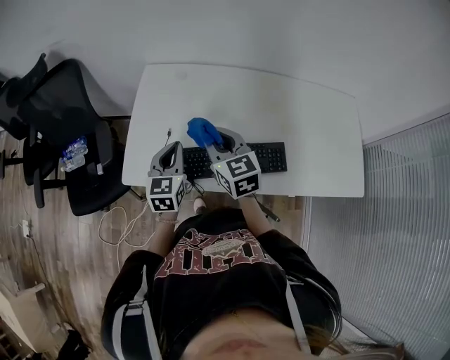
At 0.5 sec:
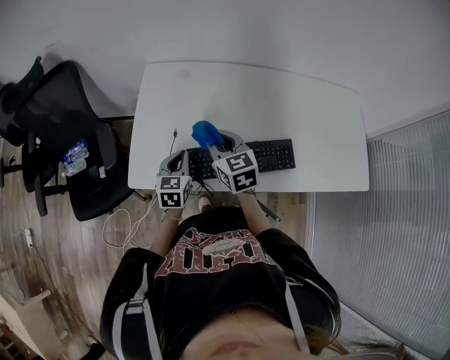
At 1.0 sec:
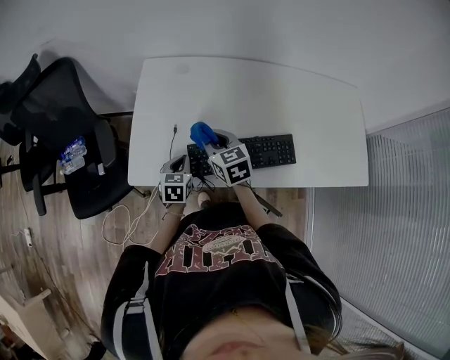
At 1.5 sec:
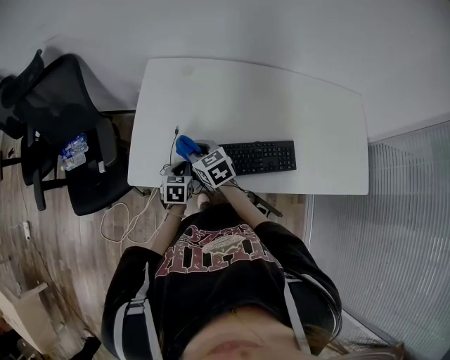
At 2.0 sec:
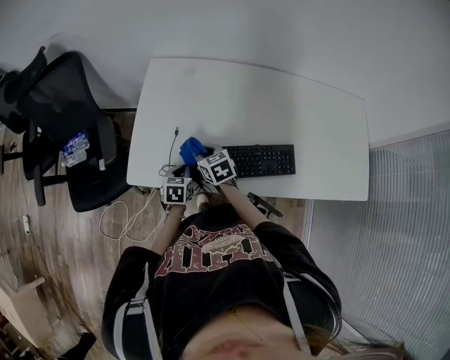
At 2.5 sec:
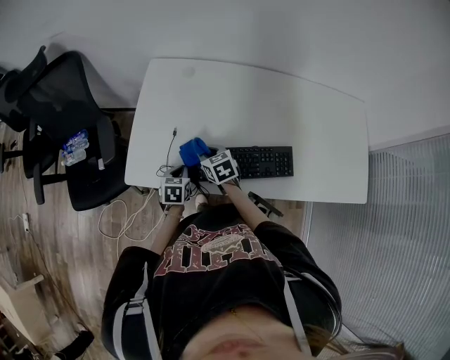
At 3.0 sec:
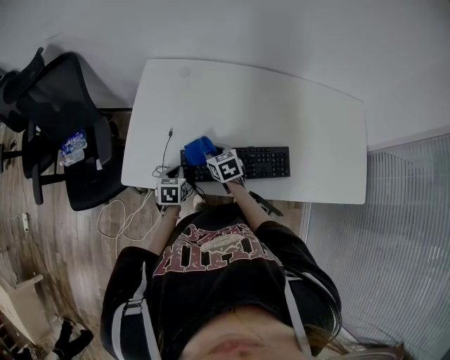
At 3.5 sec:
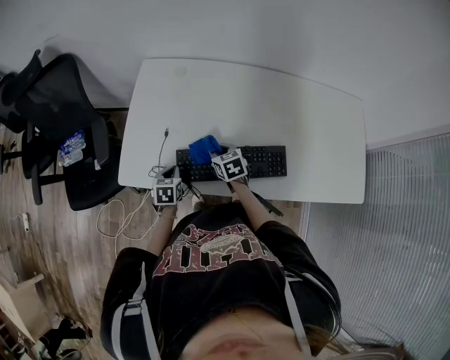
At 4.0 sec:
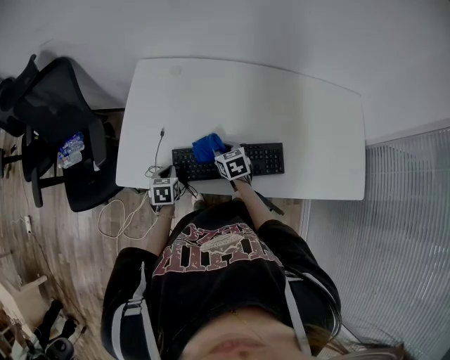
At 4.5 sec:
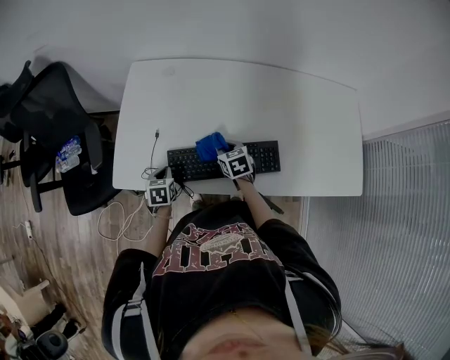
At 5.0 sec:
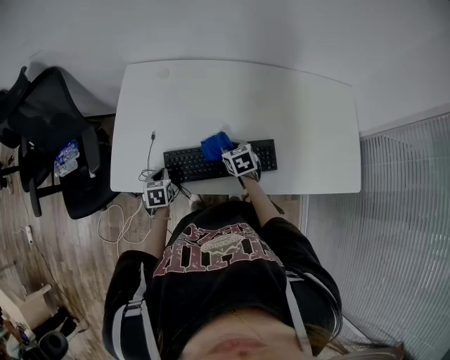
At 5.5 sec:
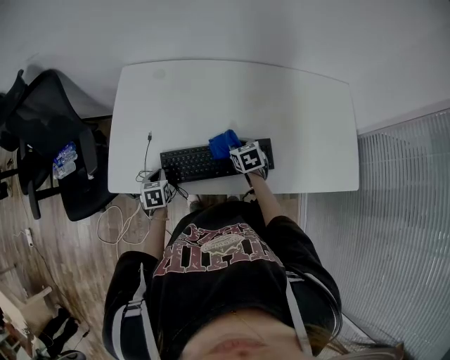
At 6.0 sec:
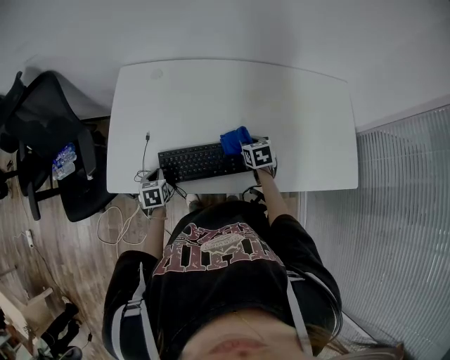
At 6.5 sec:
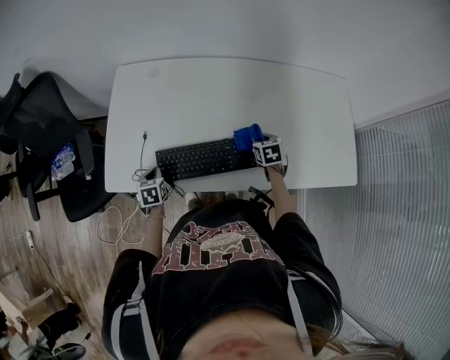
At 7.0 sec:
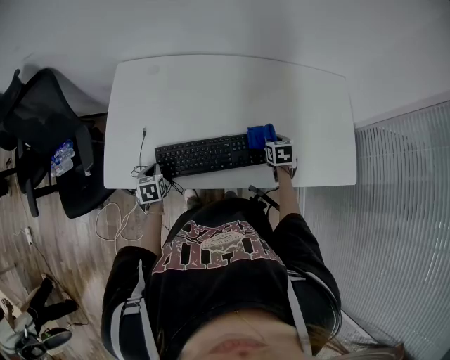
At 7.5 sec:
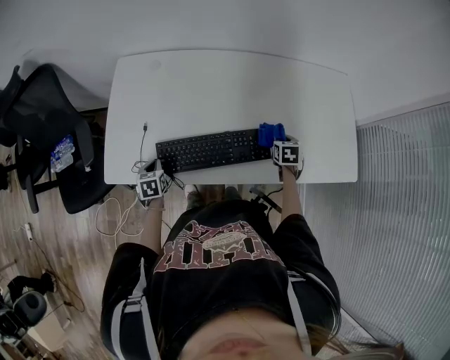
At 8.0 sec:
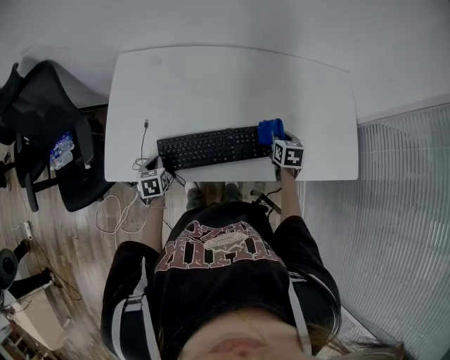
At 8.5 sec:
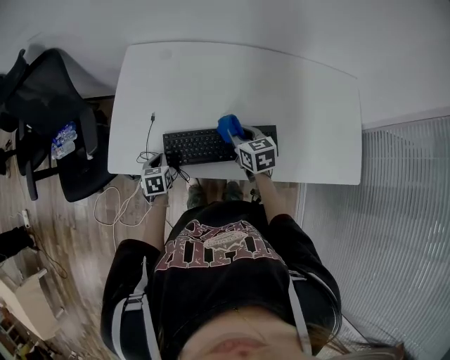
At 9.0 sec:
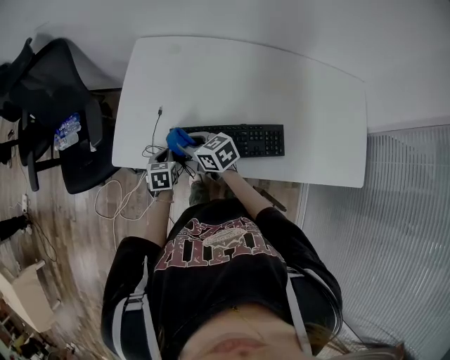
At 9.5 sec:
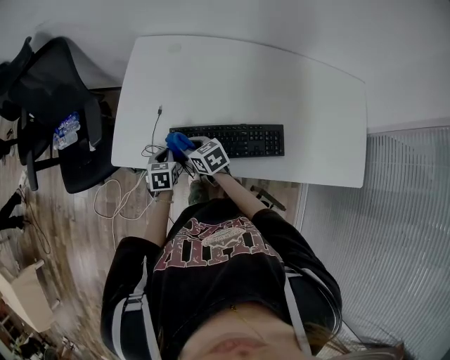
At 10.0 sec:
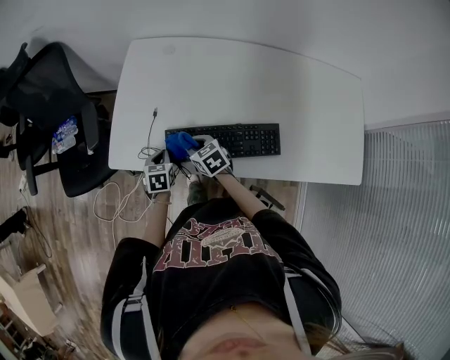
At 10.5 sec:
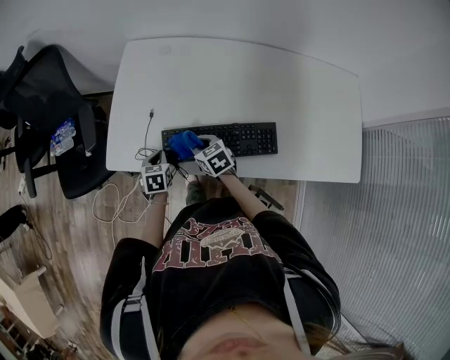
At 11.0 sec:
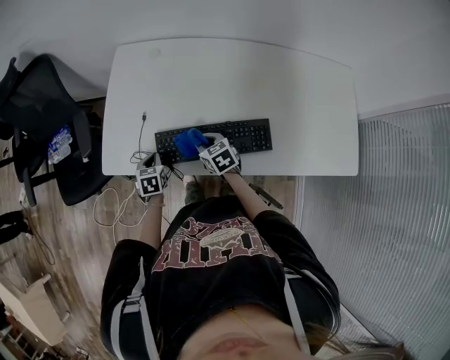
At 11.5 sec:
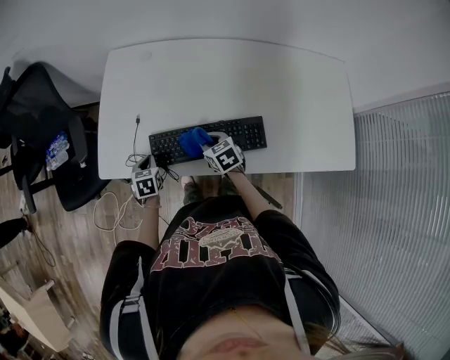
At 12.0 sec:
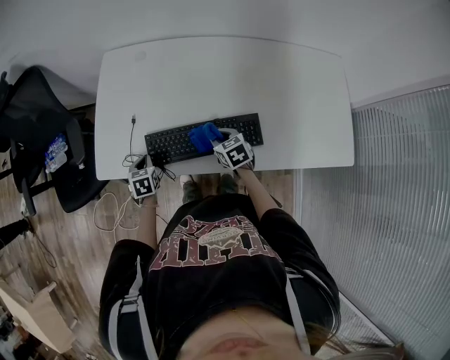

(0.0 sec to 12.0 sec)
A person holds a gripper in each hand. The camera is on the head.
0.0 sec - 2.0 sec: Both grippers travel together downward, approximately 20 cm. The right gripper turns by some 20 degrees, while the left gripper turns by roughly 30 degrees.
2.0 sec - 4.0 sec: The right gripper shifts roughly 15 cm to the right.
4.0 sec - 6.0 sec: The right gripper goes roughly 15 cm to the right.
6.0 sec - 8.0 sec: The right gripper moves to the right, approximately 10 cm.
8.0 sec - 10.0 sec: The right gripper shifts by about 35 cm, and turns by approximately 50 degrees.
10.0 sec - 12.0 sec: The right gripper shifts roughly 15 cm to the right.

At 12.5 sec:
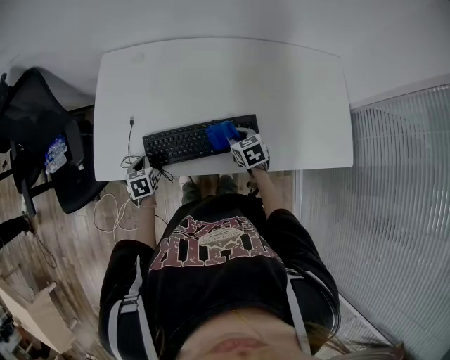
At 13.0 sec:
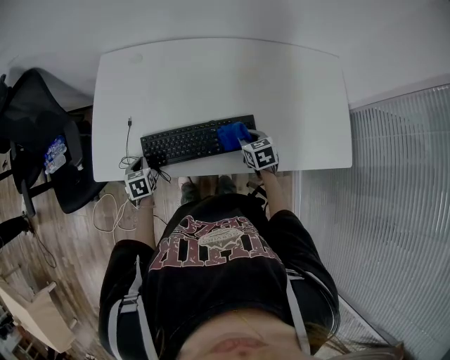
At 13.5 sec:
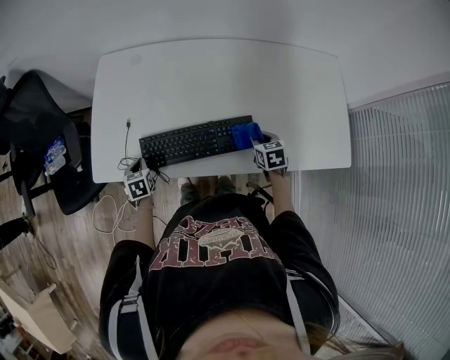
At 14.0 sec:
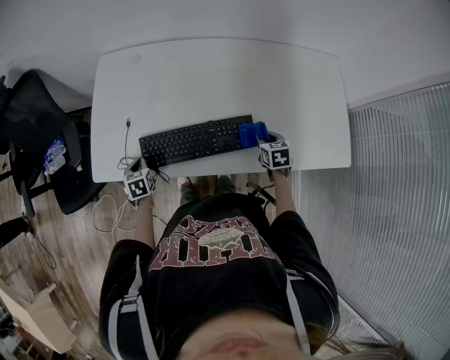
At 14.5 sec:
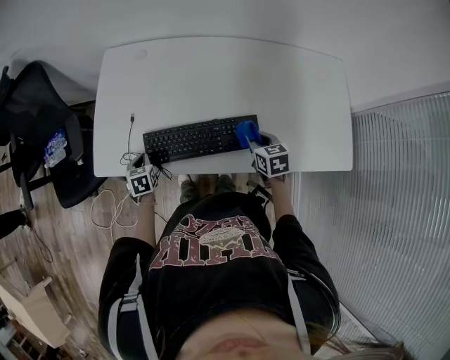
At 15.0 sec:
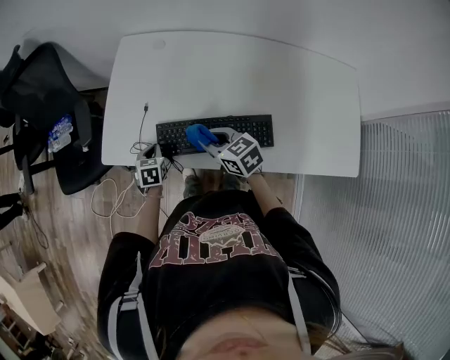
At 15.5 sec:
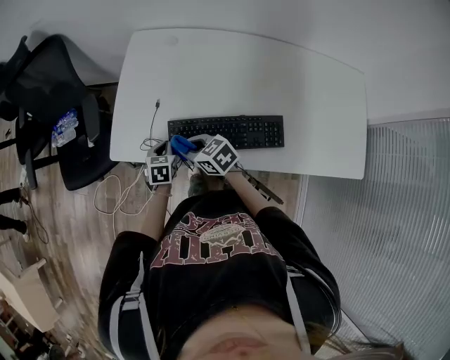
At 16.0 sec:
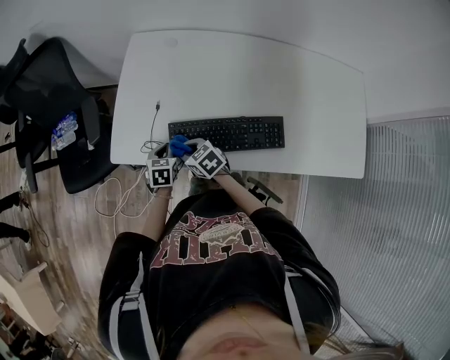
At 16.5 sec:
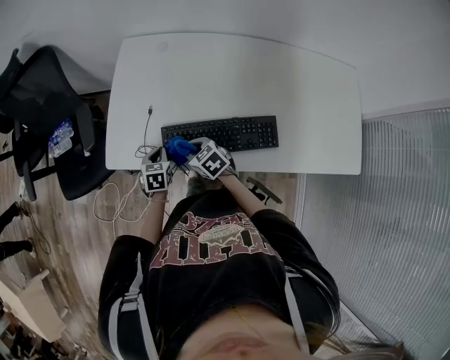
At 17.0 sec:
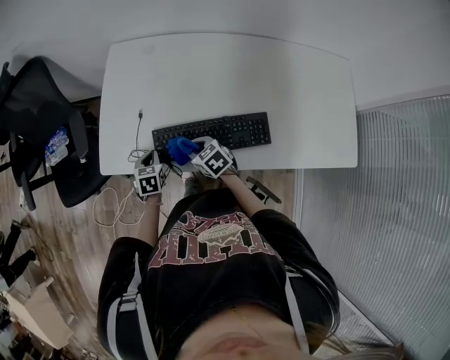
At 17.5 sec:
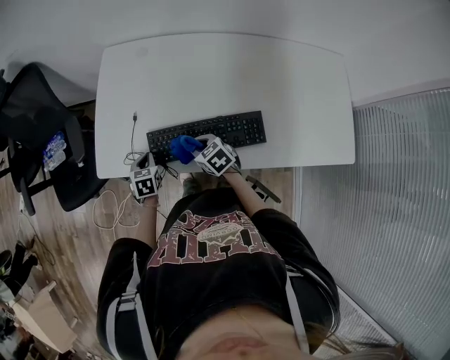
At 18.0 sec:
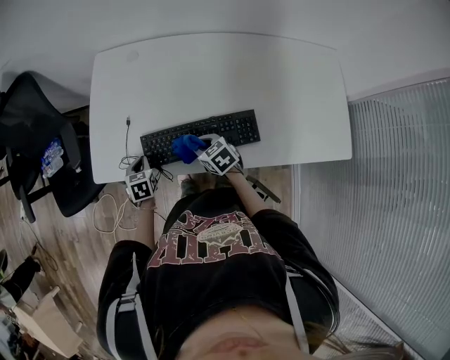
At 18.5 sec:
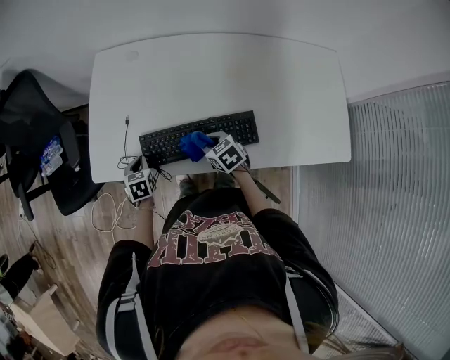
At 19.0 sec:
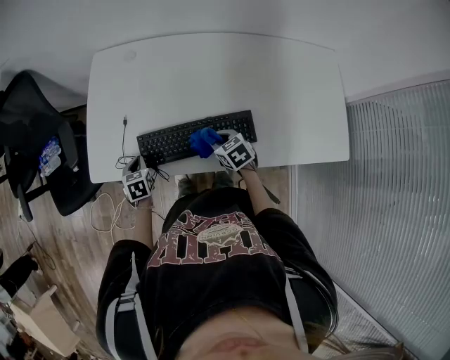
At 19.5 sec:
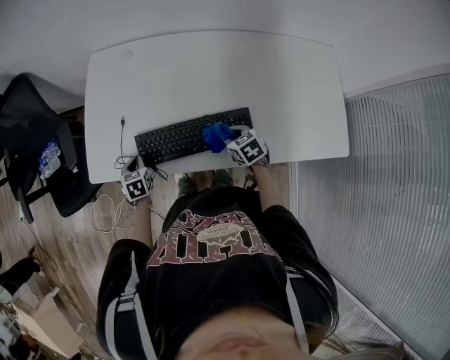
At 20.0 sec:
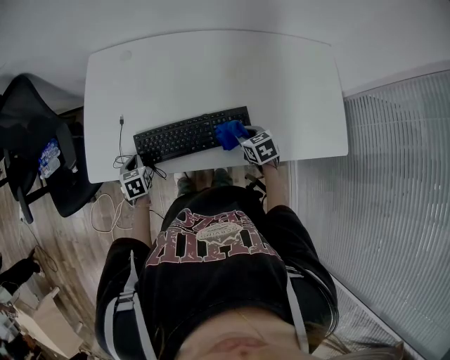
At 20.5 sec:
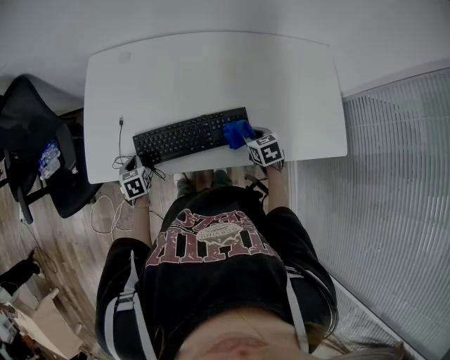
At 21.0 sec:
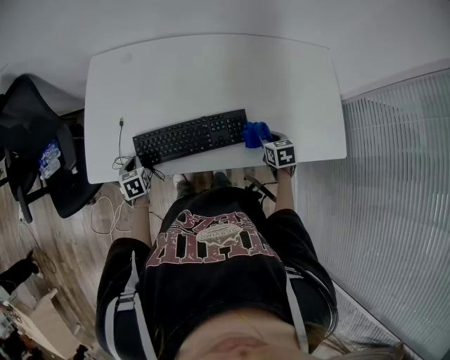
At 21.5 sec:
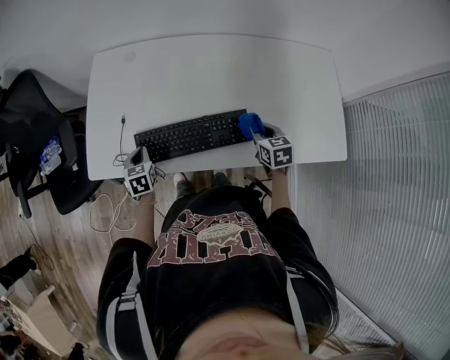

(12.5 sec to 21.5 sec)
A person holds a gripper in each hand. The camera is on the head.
12.5 sec - 14.5 sec: The right gripper is displaced to the right and upward by roughly 10 cm.
14.5 sec - 17.0 sec: The right gripper moves to the left, about 25 cm, and turns by roughly 30 degrees.
17.0 sec - 19.5 sec: The right gripper shifts roughly 20 cm to the right.
19.5 sec - 21.5 sec: The left gripper moves roughly 5 cm. The right gripper goes roughly 15 cm to the right and upward, and turns by roughly 20 degrees.

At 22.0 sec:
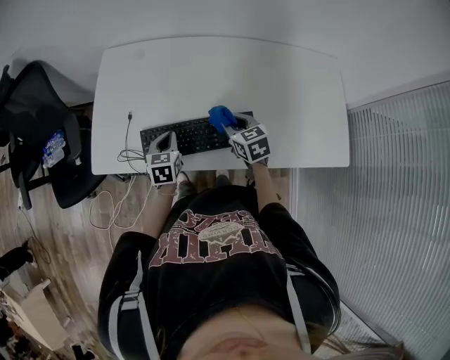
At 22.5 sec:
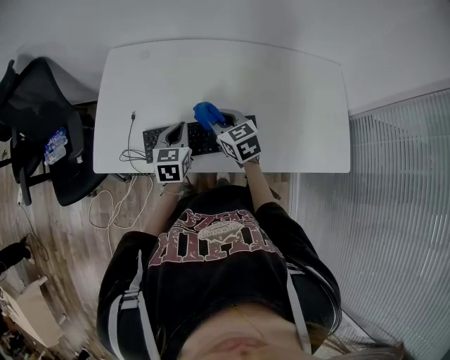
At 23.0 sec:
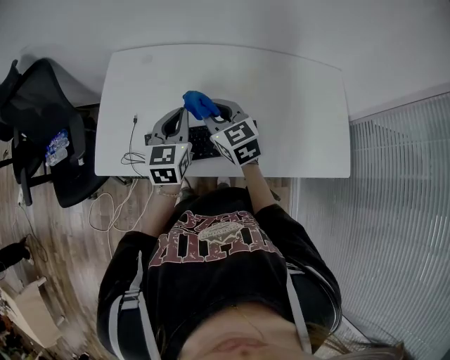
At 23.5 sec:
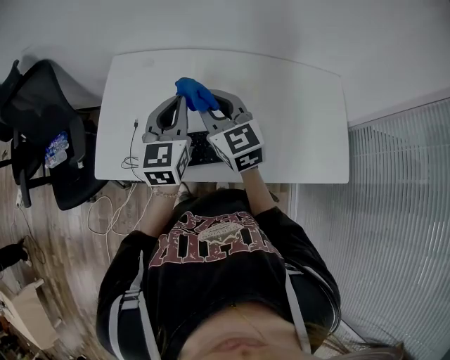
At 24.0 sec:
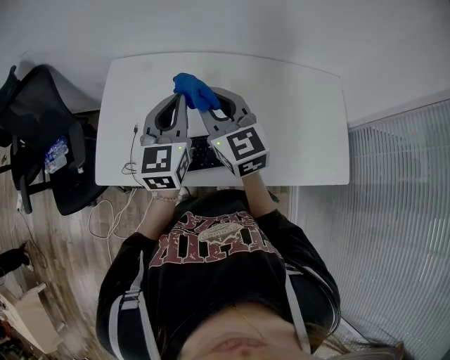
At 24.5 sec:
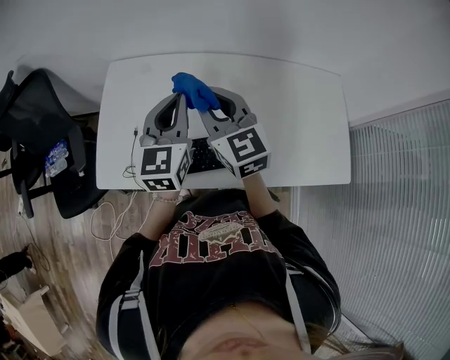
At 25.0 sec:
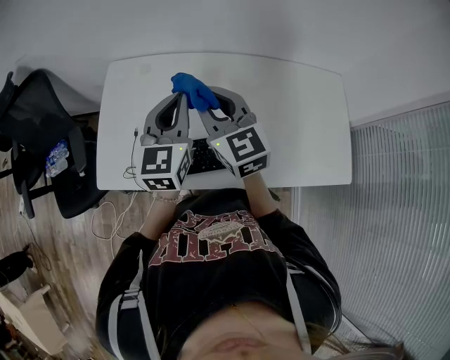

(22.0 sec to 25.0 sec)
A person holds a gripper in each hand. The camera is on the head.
22.0 sec - 23.5 sec: The right gripper shifts about 20 cm upward and to the left, and changes its angle by some 30 degrees; the left gripper goes roughly 25 cm upward, and changes its angle by about 30 degrees.
23.5 sec - 25.0 sec: The grippers move only a little.

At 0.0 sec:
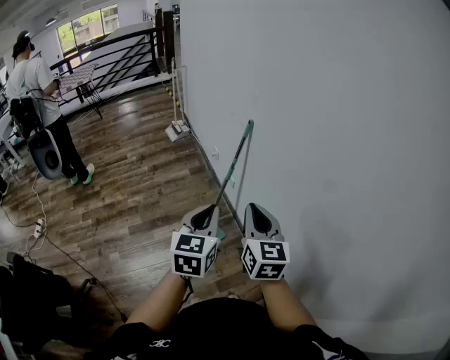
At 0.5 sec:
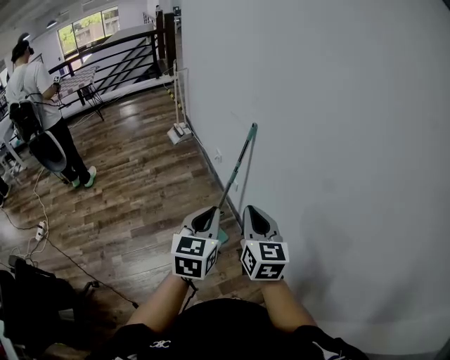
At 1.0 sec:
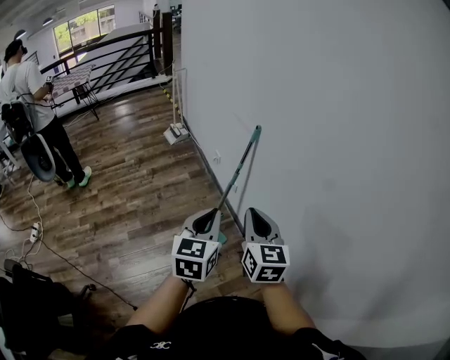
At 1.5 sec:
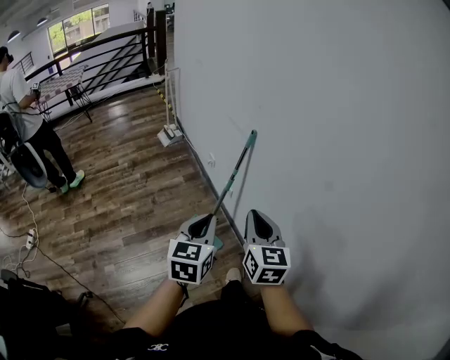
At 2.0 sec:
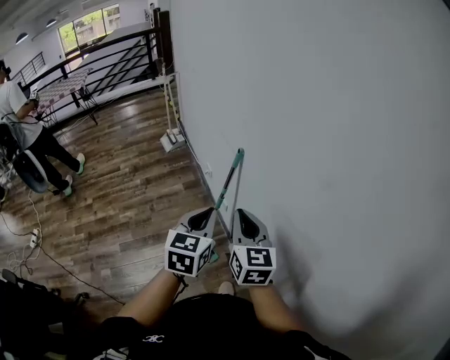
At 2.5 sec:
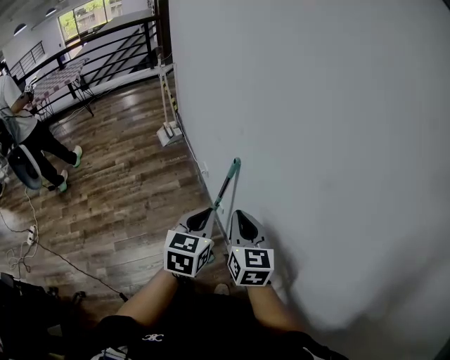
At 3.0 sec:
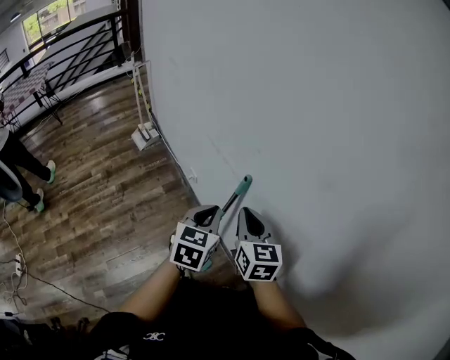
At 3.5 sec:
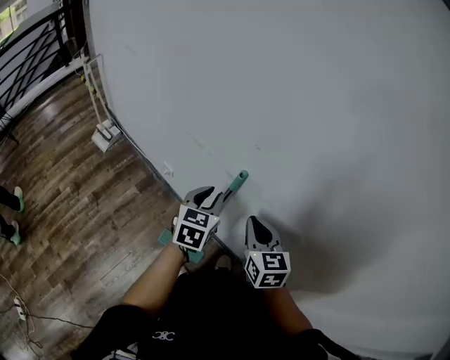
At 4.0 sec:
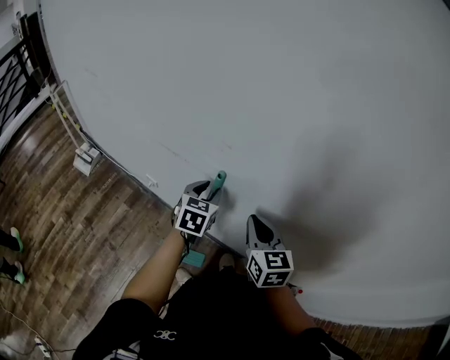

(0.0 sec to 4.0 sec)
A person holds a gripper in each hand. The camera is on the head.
0.0 sec - 2.0 sec: Both grippers travel together forward, roughly 20 cm.
2.0 sec - 4.0 sec: The left gripper moves some 30 cm, changes its angle by approximately 40 degrees, and opens up; the right gripper changes place by about 15 cm, and swivels about 40 degrees.
